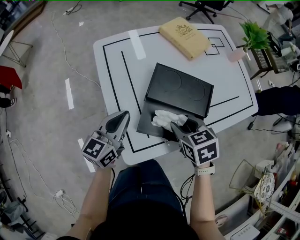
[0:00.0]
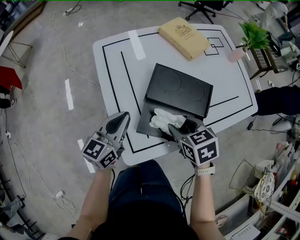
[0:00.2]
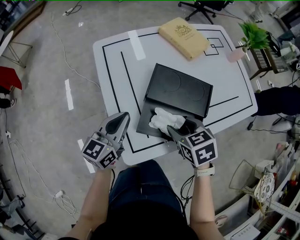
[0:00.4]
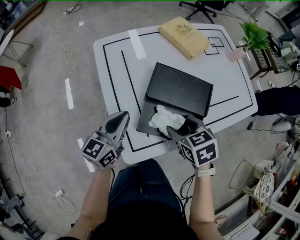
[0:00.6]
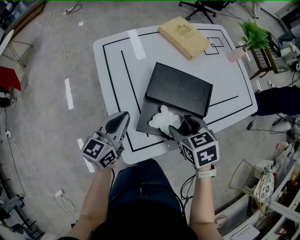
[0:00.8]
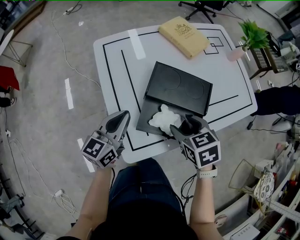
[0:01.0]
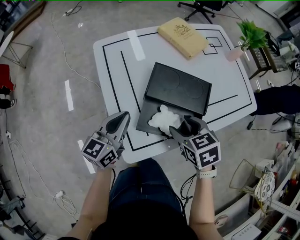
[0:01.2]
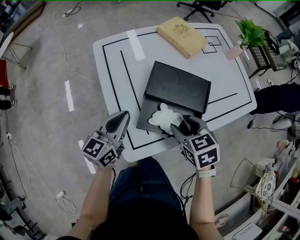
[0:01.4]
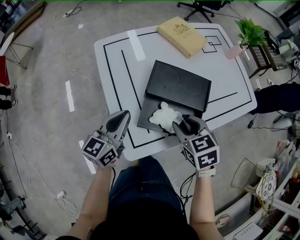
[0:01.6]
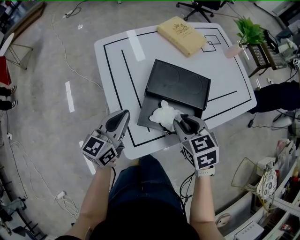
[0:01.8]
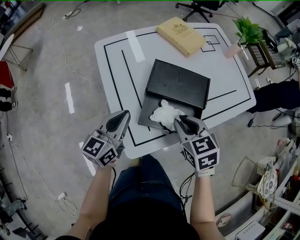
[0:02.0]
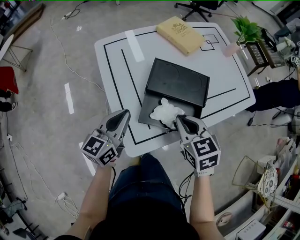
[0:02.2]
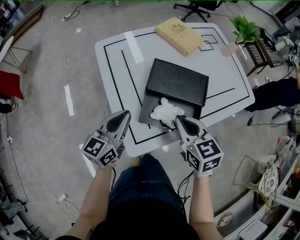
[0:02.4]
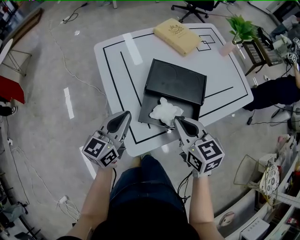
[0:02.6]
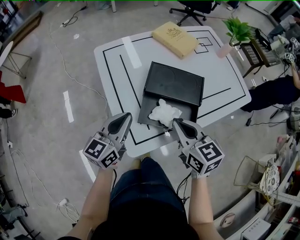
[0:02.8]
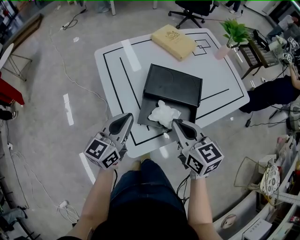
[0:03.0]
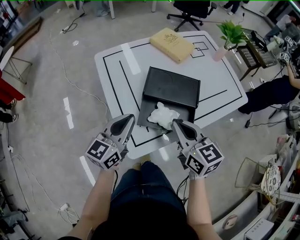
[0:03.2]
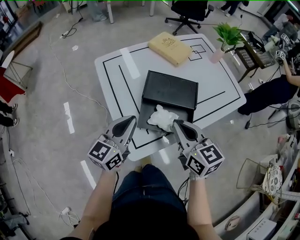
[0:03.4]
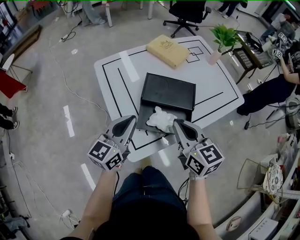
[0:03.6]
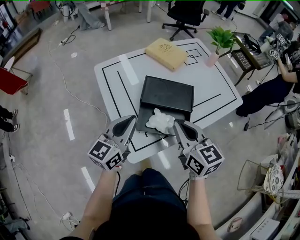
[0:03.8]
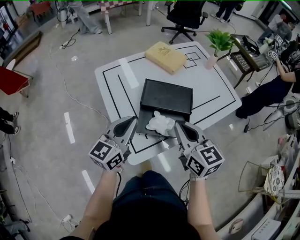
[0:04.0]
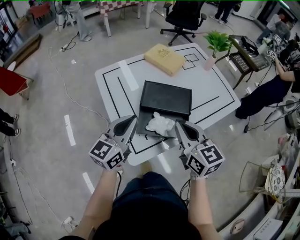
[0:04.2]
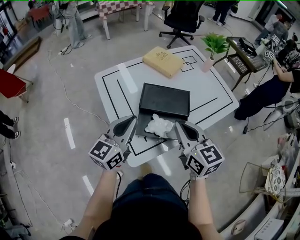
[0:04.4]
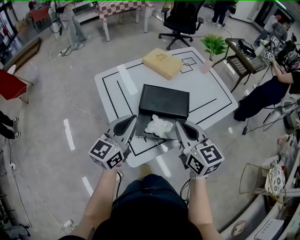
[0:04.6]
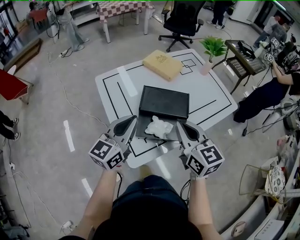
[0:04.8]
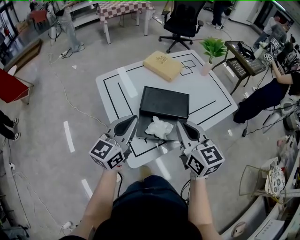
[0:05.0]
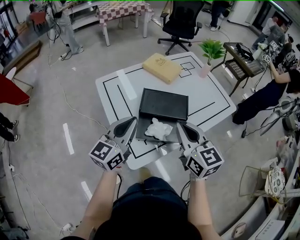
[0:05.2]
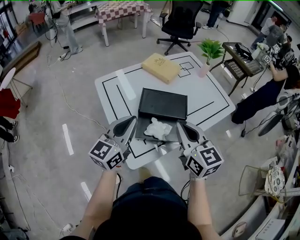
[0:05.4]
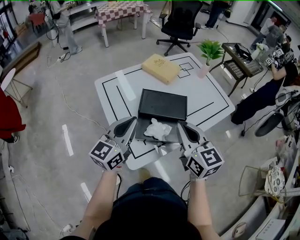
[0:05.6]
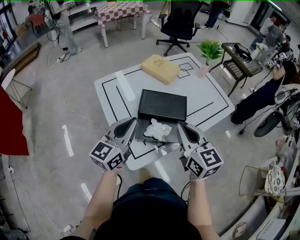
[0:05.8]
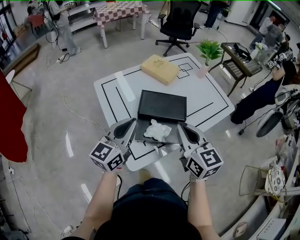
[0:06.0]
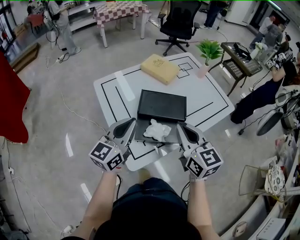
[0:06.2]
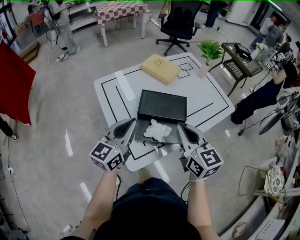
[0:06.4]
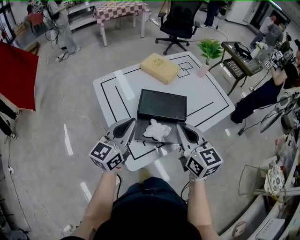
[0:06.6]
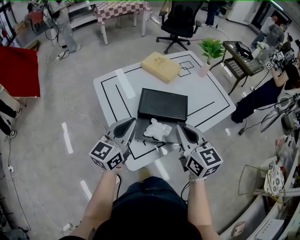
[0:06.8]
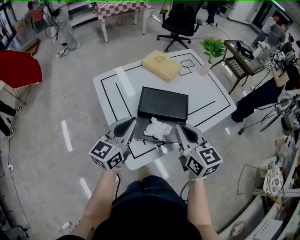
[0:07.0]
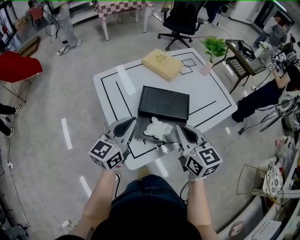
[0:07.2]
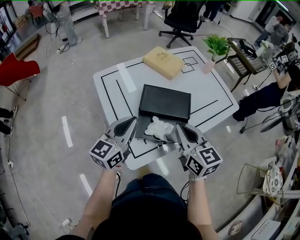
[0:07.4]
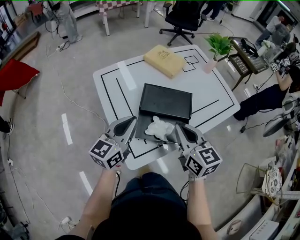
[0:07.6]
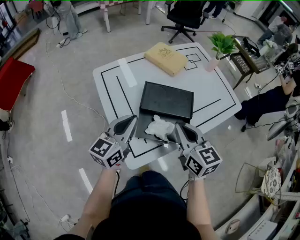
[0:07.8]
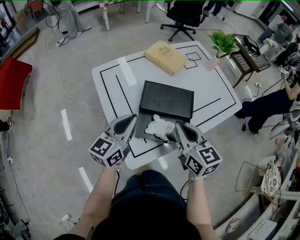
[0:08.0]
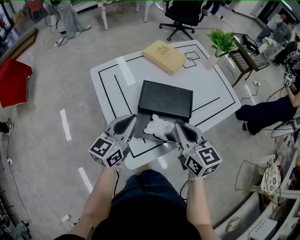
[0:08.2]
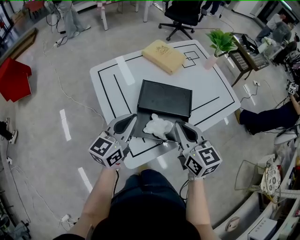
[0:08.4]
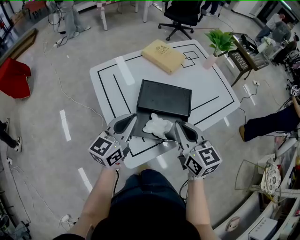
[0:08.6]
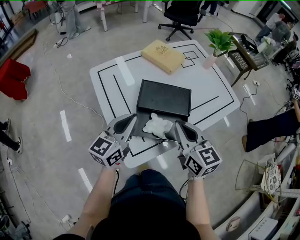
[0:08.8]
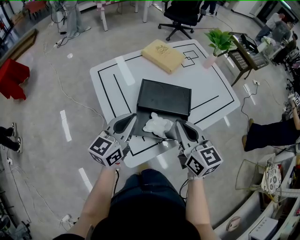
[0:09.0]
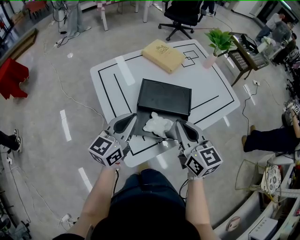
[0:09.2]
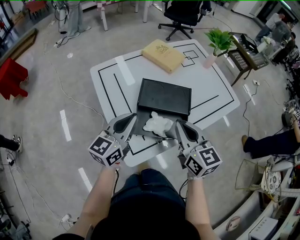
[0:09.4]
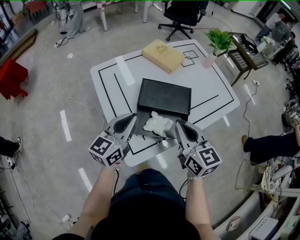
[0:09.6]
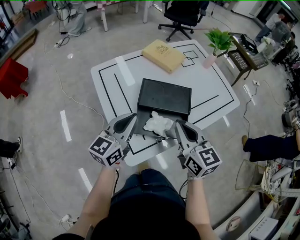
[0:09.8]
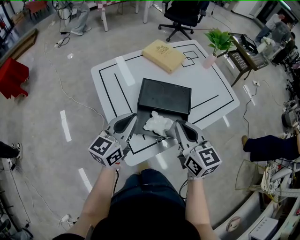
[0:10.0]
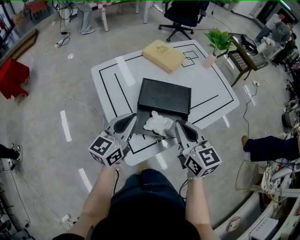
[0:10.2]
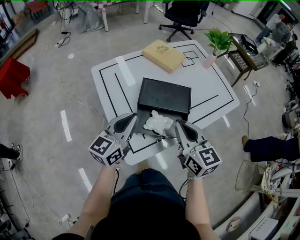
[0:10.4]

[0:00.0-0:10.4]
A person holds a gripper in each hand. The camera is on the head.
0:00.0 to 0:01.4: The grippers make only small movements.
0:01.4 to 0:03.0: The right gripper moves upward, some 10 cm, changes its angle by about 30 degrees, and closes its fingers. Meanwhile the left gripper changes place by roughly 5 cm.
0:03.0 to 0:04.4: Both grippers travel together upward, about 10 cm.
0:04.4 to 0:09.0: The grippers make only small movements.
0:09.0 to 0:10.4: Both grippers stay put.

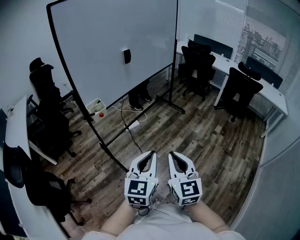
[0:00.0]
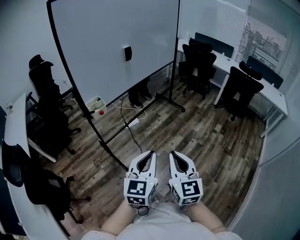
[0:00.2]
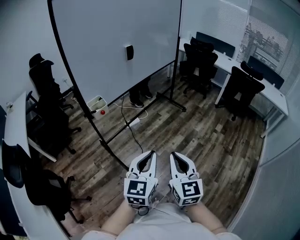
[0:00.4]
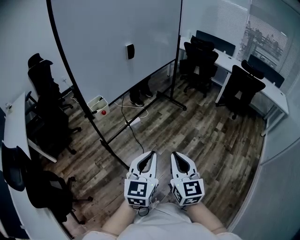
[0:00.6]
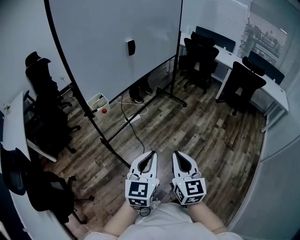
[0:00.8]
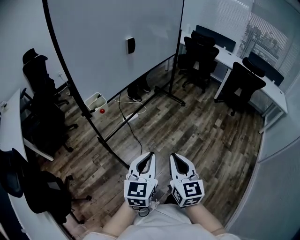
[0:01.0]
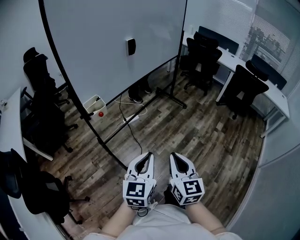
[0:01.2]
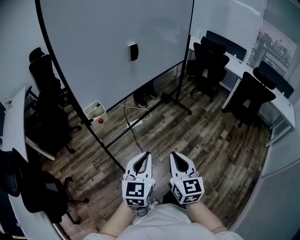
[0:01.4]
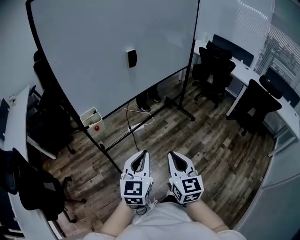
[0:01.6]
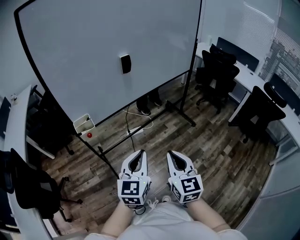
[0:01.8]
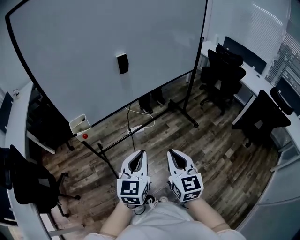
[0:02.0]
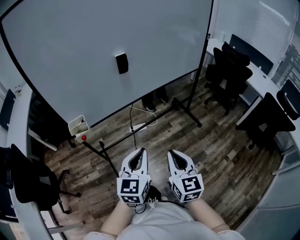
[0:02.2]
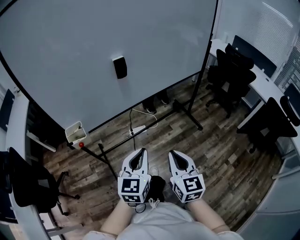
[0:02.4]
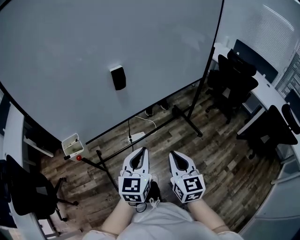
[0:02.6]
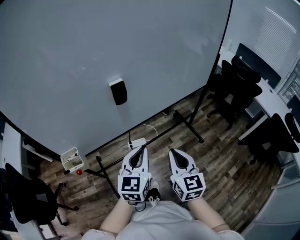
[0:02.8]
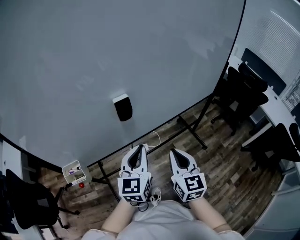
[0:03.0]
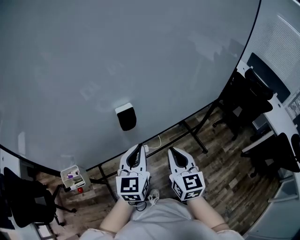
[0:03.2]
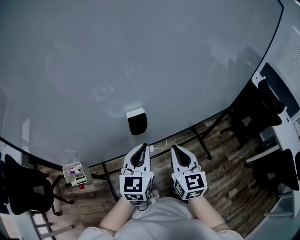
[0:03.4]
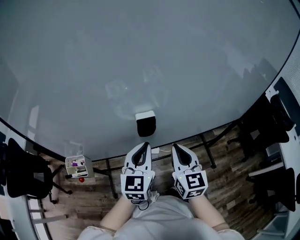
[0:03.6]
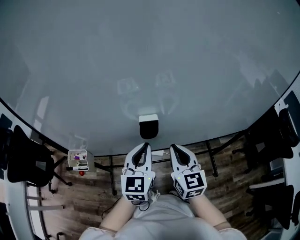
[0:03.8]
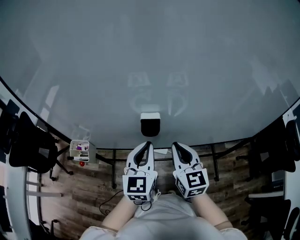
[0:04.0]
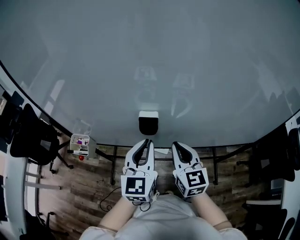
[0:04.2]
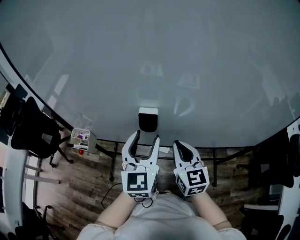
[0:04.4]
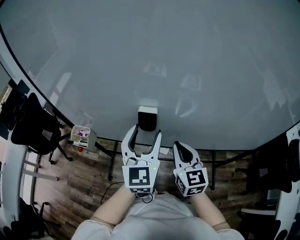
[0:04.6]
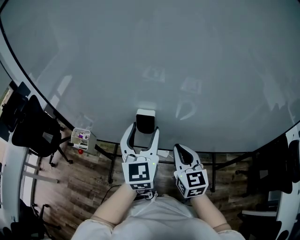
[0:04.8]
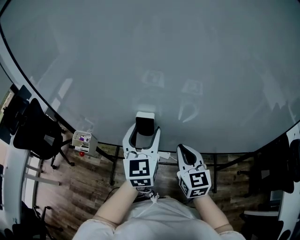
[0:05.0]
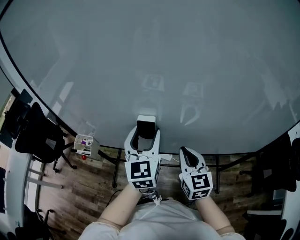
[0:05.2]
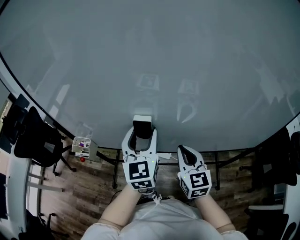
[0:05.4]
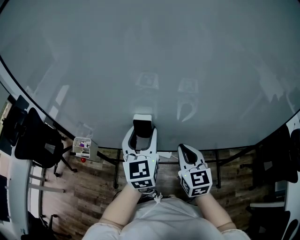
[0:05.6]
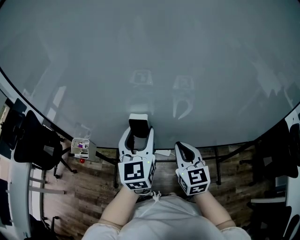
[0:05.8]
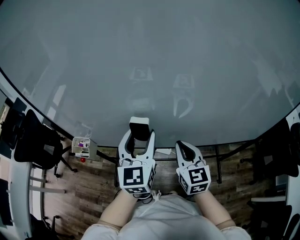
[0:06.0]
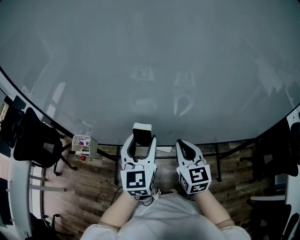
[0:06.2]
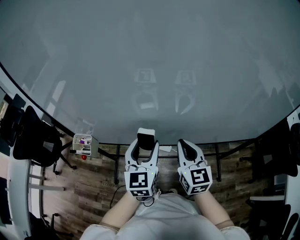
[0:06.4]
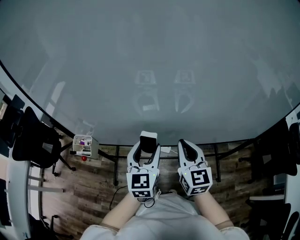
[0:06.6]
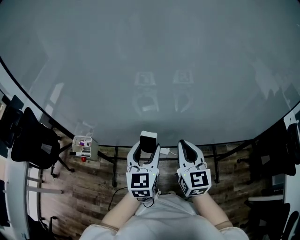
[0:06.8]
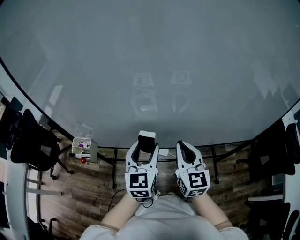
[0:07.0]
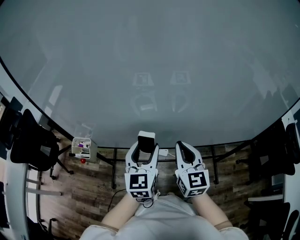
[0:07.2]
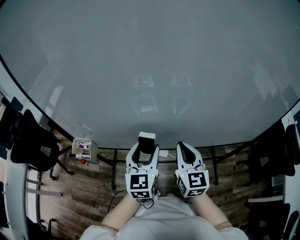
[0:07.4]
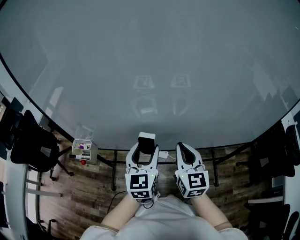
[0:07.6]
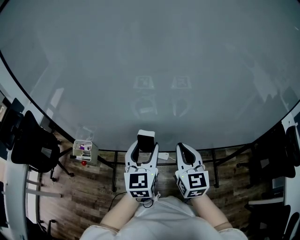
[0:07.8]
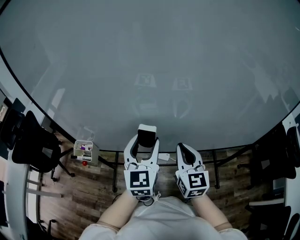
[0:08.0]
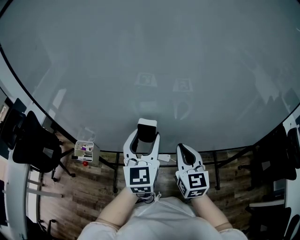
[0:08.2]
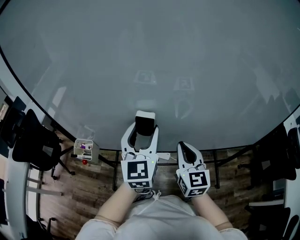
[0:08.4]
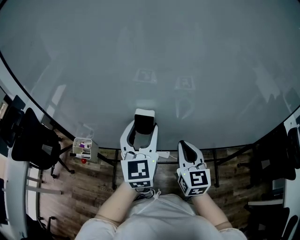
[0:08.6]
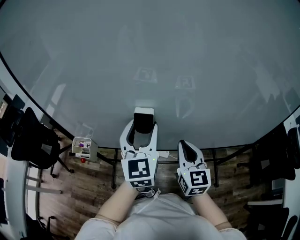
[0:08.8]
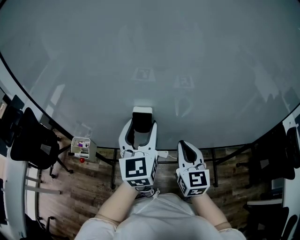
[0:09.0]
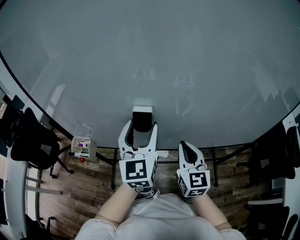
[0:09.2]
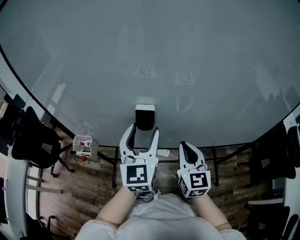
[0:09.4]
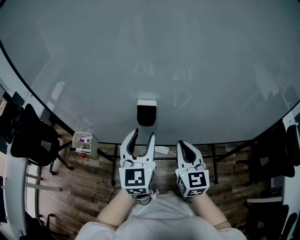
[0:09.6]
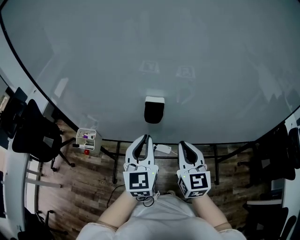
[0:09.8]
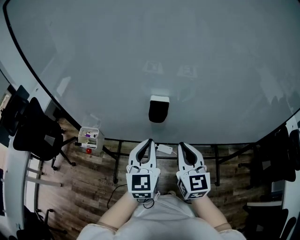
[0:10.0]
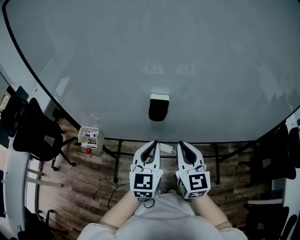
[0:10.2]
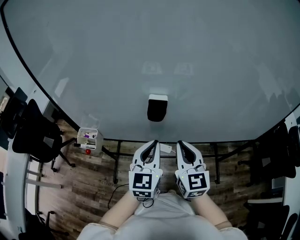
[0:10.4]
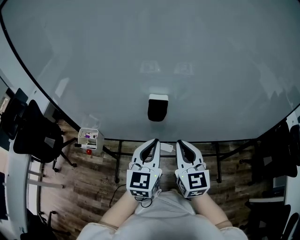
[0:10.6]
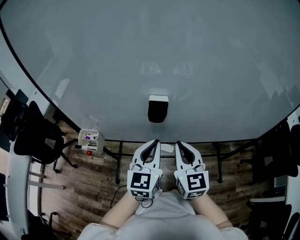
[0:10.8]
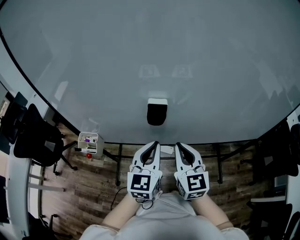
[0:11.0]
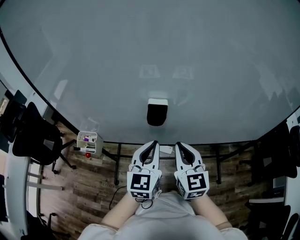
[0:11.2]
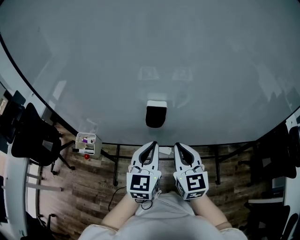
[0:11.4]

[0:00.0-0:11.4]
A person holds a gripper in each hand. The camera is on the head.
0:00.0 to 0:01.4: The right gripper is displaced forward by roughly 15 cm. Meanwhile the left gripper heads forward and to the left, covering roughly 15 cm.
0:01.4 to 0:02.8: The pair of grippers is taken forward, about 40 cm.
0:02.8 to 0:04.2: The right gripper shifts by roughly 25 cm, and changes its angle by approximately 40 degrees; the left gripper ends up roughly 15 cm from where it was, and swivels about 40 degrees.
0:04.2 to 0:05.6: The left gripper moves approximately 5 cm, and opens up.
0:05.6 to 0:07.2: The left gripper goes roughly 5 cm downward.
0:07.2 to 0:08.6: The left gripper goes approximately 10 cm upward.
0:08.6 to 0:10.0: The left gripper moves downward and backward, some 10 cm, and closes its fingers. The right gripper ends up some 5 cm from where it was.
0:10.0 to 0:11.4: The grippers stay close to where they were, moving slightly.

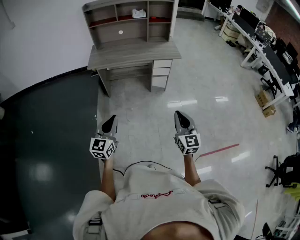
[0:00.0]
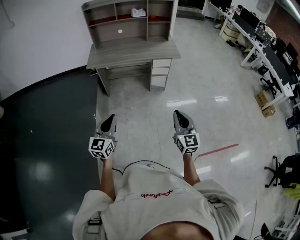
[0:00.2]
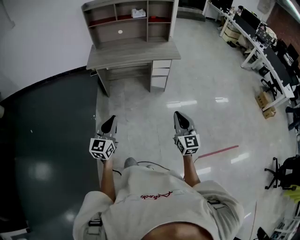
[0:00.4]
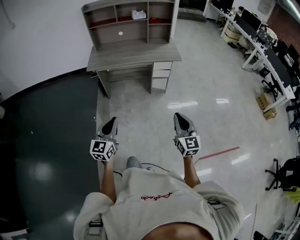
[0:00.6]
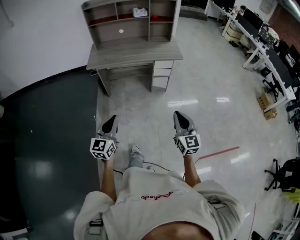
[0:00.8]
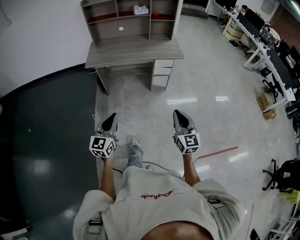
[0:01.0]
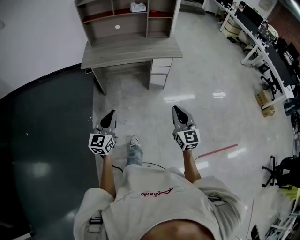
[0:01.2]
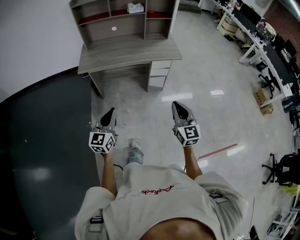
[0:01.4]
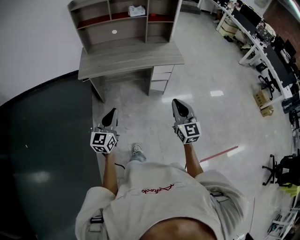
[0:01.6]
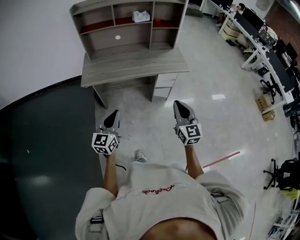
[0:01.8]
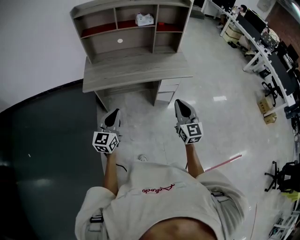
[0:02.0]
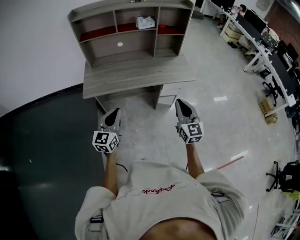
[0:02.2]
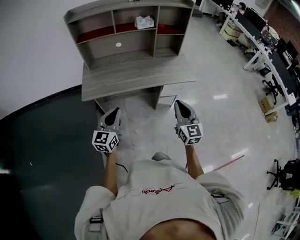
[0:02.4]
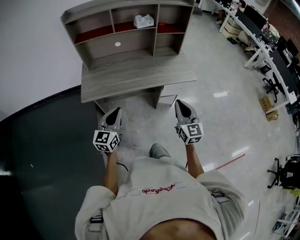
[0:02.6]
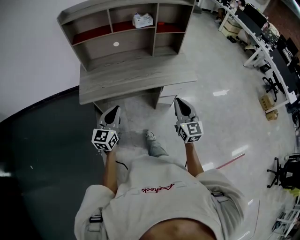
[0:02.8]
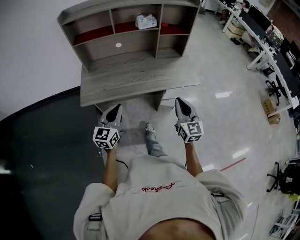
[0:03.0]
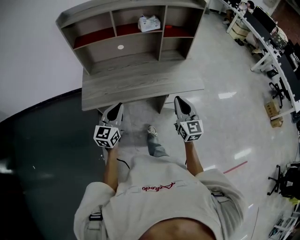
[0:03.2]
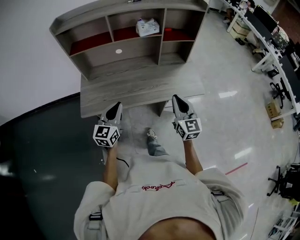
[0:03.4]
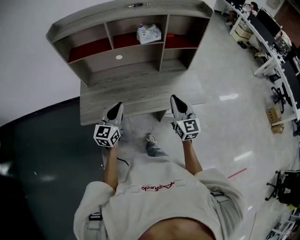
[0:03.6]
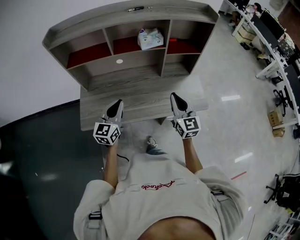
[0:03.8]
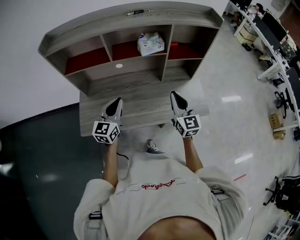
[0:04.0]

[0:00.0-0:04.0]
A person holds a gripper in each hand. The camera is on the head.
0:00.0 to 0:01.4: The grippers stay close to where they were, moving slightly.
0:01.4 to 0:02.6: The grippers both shift forward by roughly 15 cm.
0:02.6 to 0:04.0: The right gripper is displaced forward by approximately 10 cm, while the left gripper goes forward and backward, approximately 10 cm each way, reversing 2 times.
